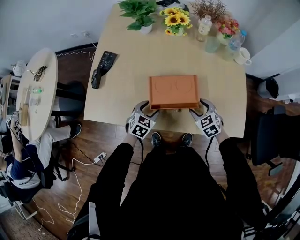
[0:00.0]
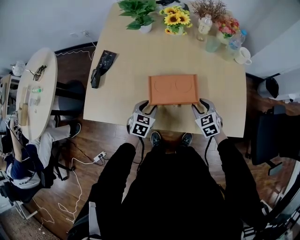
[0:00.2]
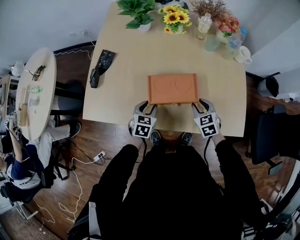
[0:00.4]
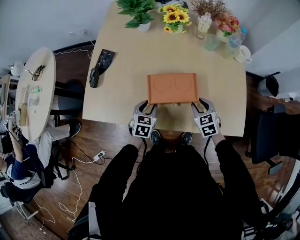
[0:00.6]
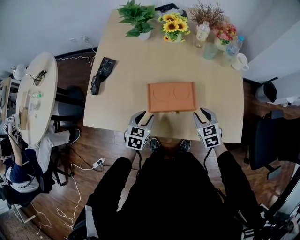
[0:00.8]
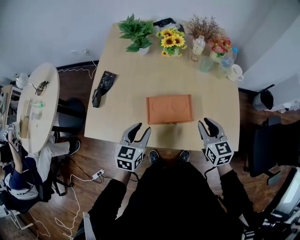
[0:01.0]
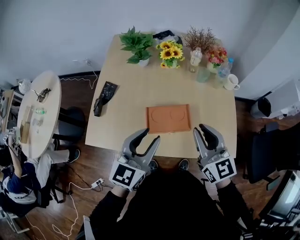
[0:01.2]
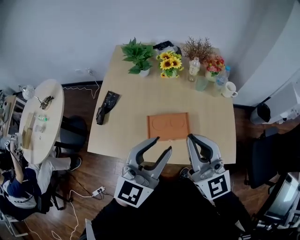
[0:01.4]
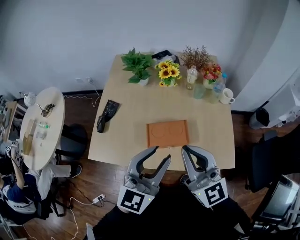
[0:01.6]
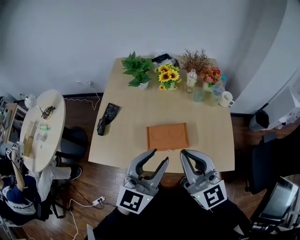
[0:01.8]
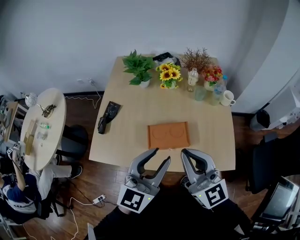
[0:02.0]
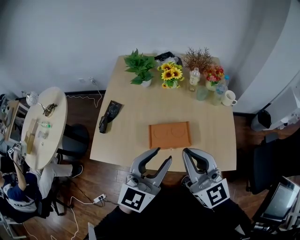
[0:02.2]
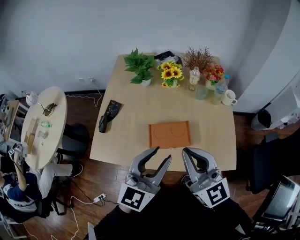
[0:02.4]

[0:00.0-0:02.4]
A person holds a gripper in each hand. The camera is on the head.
0:00.0 to 0:01.2: The two grippers go approximately 30 cm upward. The left gripper points its fingers roughly 40 degrees further upward; the right gripper points its fingers about 40 degrees further upward, and closes.
0:01.2 to 0:02.4: The left gripper shifts some 5 cm upward. Meanwhile the right gripper goes roughly 10 cm upward and to the left.

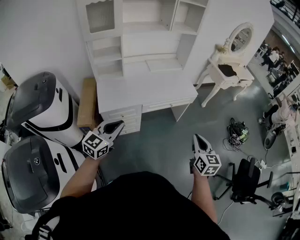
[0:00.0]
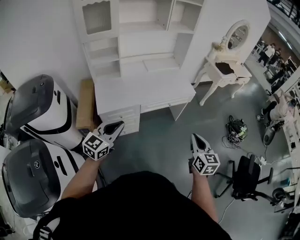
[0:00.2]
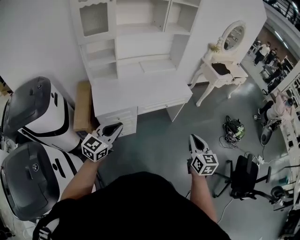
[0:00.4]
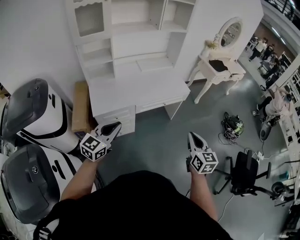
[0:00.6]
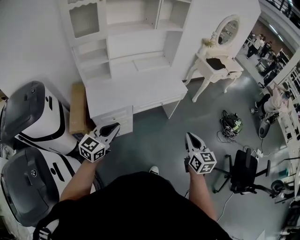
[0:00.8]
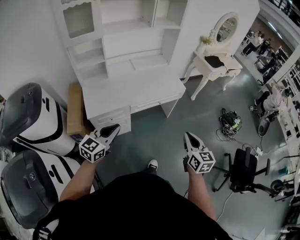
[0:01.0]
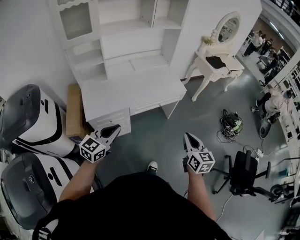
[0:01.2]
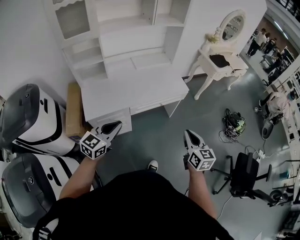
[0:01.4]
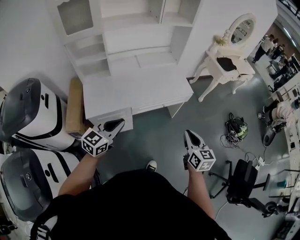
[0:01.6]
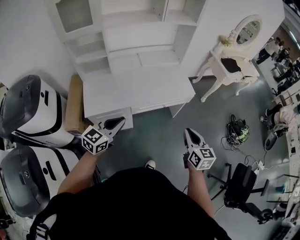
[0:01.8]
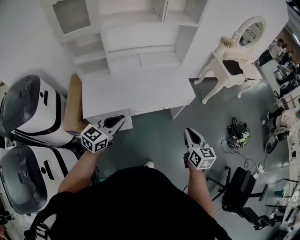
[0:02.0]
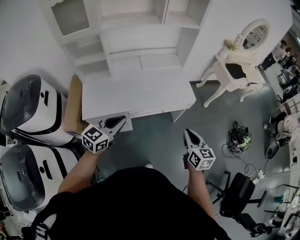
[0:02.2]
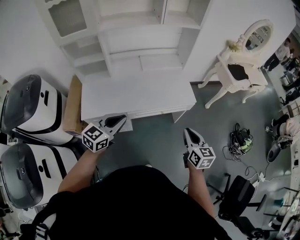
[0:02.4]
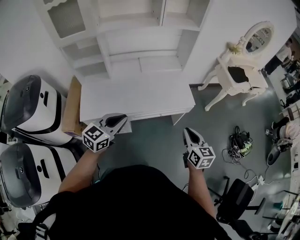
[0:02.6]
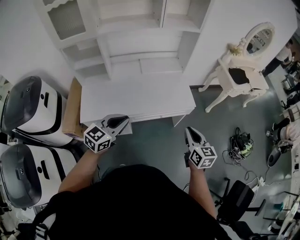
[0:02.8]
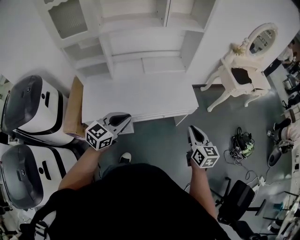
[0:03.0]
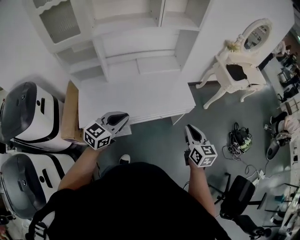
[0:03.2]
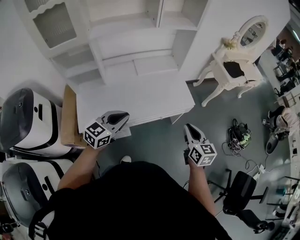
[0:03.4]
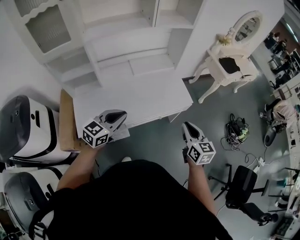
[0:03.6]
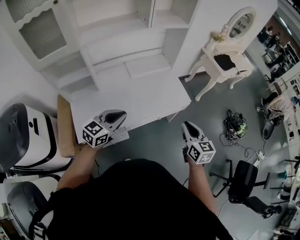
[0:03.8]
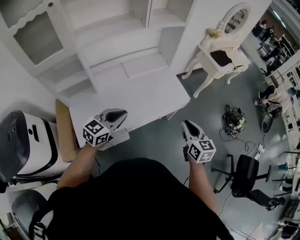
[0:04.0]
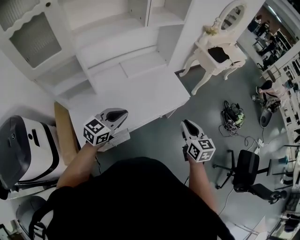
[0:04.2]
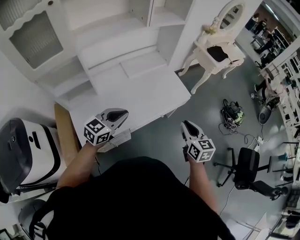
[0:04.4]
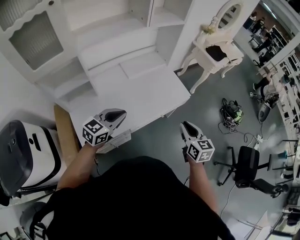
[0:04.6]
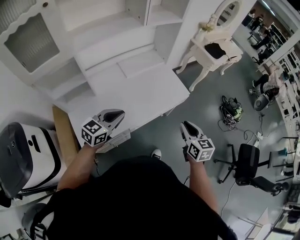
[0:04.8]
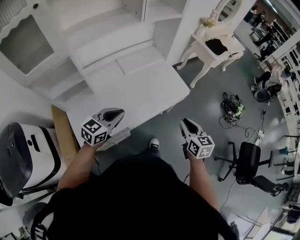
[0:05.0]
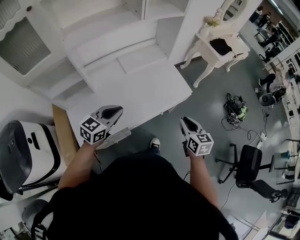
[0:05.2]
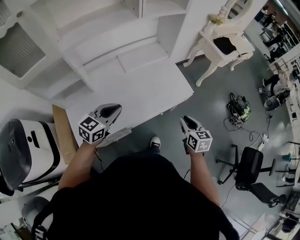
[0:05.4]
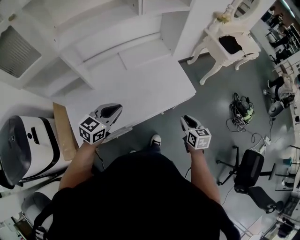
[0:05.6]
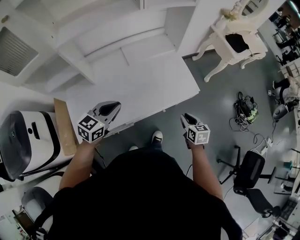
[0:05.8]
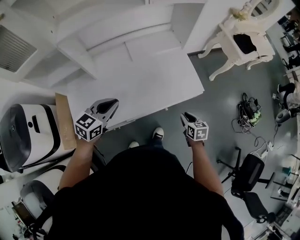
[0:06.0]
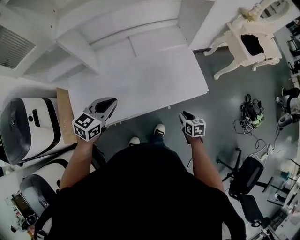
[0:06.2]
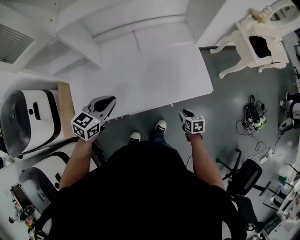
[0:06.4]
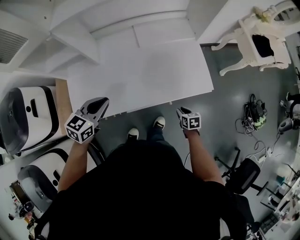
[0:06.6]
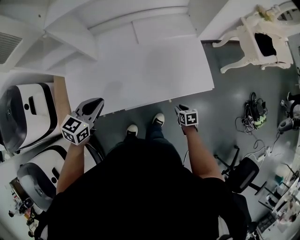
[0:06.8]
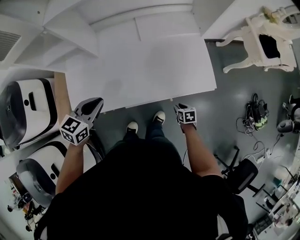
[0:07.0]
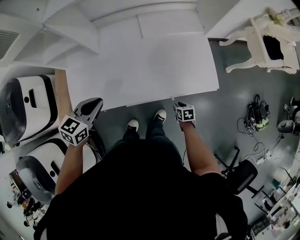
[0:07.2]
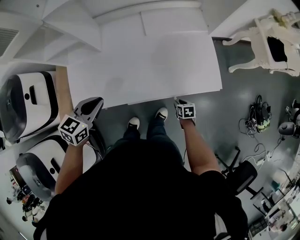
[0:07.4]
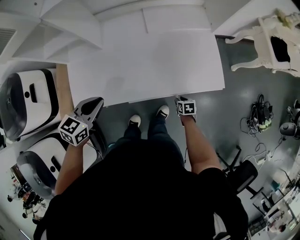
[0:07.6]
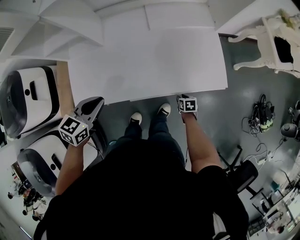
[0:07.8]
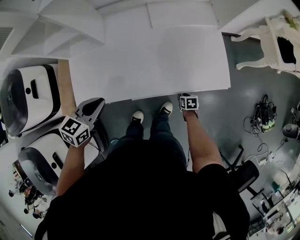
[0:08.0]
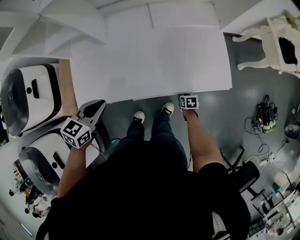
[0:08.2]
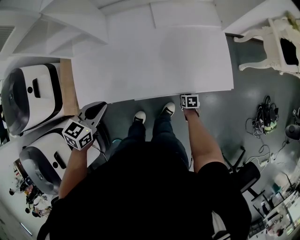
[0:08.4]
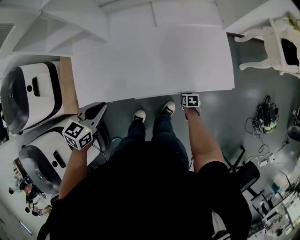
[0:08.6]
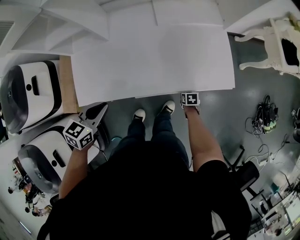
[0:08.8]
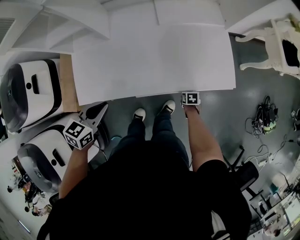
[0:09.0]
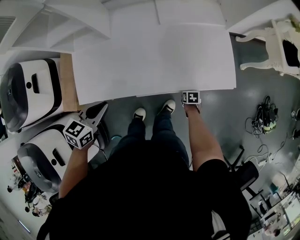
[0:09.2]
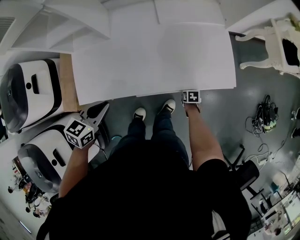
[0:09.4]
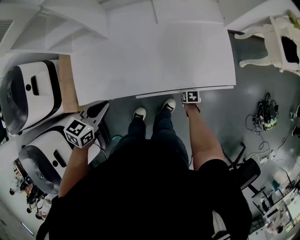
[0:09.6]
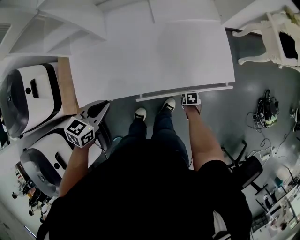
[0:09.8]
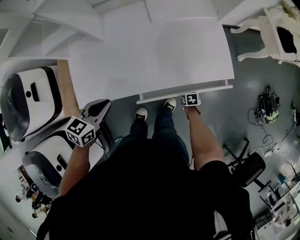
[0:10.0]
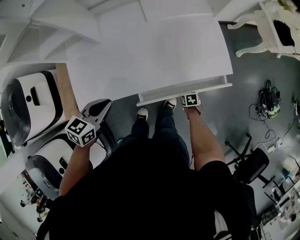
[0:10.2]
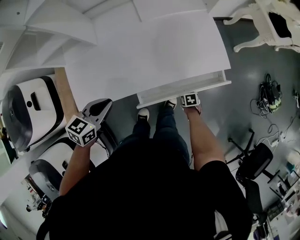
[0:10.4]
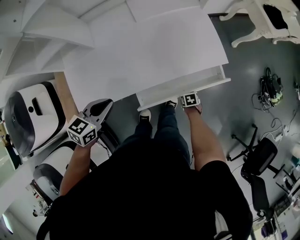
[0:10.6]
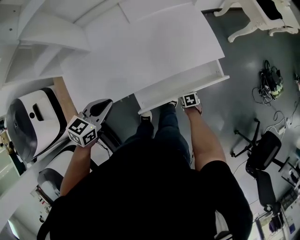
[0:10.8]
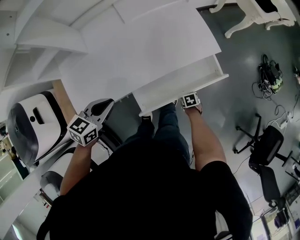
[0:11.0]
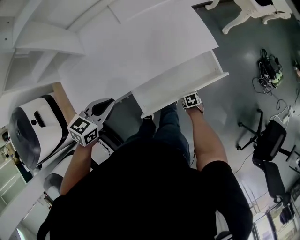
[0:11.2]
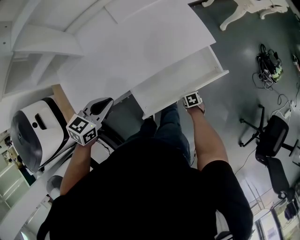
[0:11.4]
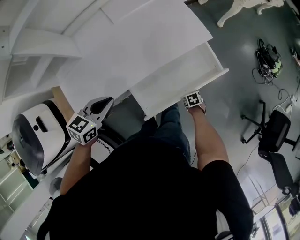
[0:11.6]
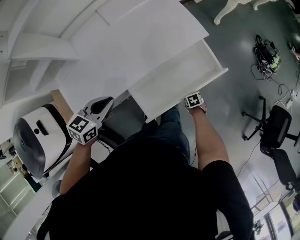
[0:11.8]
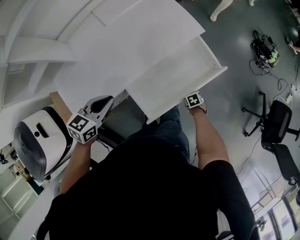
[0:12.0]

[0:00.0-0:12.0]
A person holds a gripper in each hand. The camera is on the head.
0:00.0 to 0:01.6: Both grippers travel together forward, approximately 15 cm.
0:01.6 to 0:03.0: The right gripper travels forward by about 15 cm; the left gripper travels forward and to the right by about 15 cm.
0:03.0 to 0:04.4: The right gripper heads to the left, covering approximately 10 cm. Meanwhile the left gripper travels to the left and forward by roughly 15 cm, and swivels roughly 20 degrees.
0:04.4 to 0:06.0: The right gripper travels downward and forward by about 25 cm, and swivels roughly 30 degrees. The left gripper is displaced forward and downward by approximately 10 cm.
0:06.0 to 0:07.6: The right gripper travels downward by about 25 cm, and changes its angle by about 20 degrees, while the left gripper travels to the left and downward by roughly 10 cm, and rotates approximately 20 degrees.
0:07.6 to 0:09.0: The left gripper ends up about 5 cm from where it was. Meanwhile the right gripper ends up approximately 5 cm from where it was.
0:09.0 to 0:10.4: The right gripper moves some 10 cm.
0:10.4 to 0:12.0: The right gripper changes place by about 15 cm, while the left gripper moves roughly 10 cm, and swivels roughly 20 degrees.

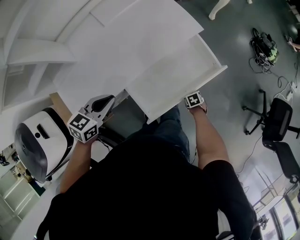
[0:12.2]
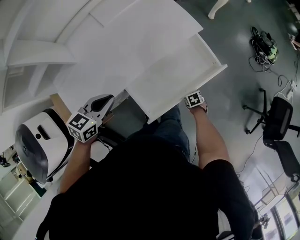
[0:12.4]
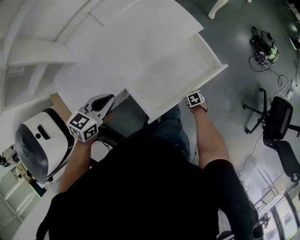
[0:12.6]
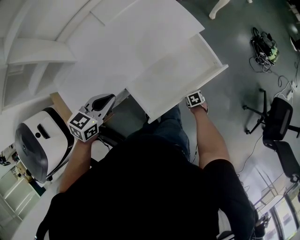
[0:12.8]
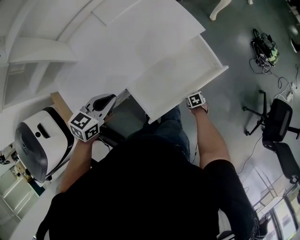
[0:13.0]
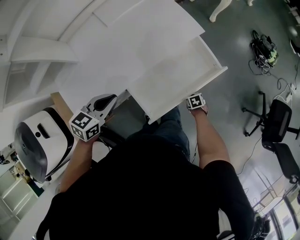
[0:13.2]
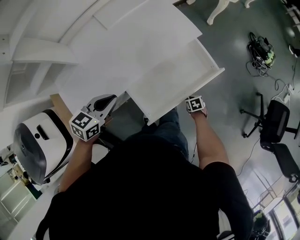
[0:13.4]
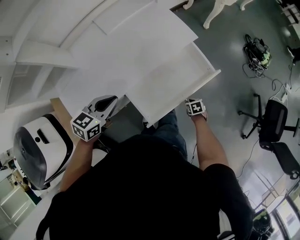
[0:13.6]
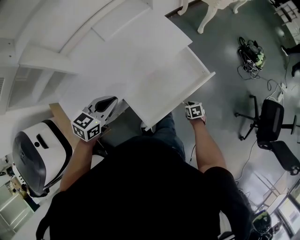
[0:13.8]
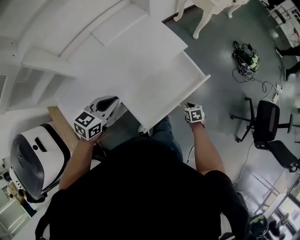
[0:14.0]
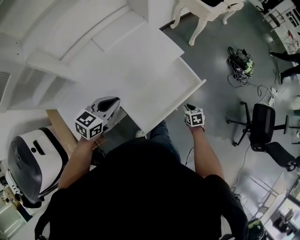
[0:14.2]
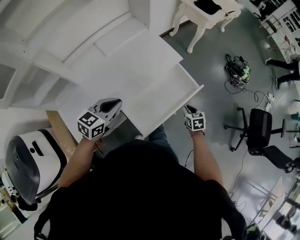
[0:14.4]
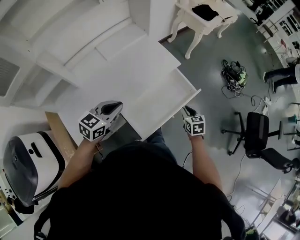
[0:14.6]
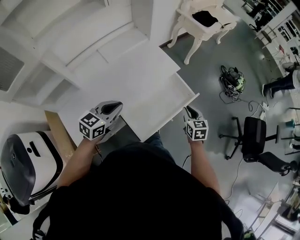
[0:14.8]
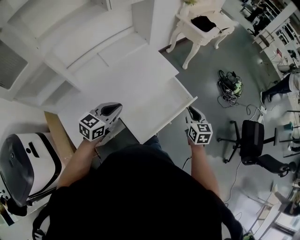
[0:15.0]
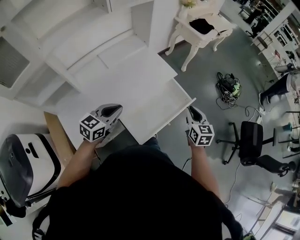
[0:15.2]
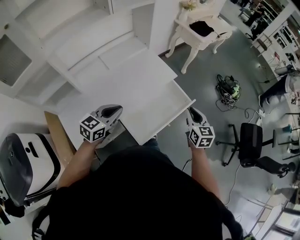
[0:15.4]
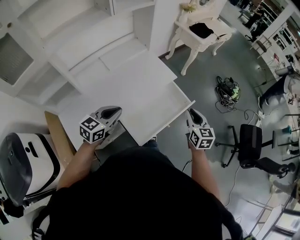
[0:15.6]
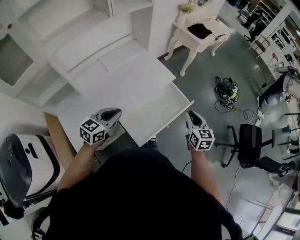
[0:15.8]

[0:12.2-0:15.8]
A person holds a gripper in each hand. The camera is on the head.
0:12.2 to 0:14.0: The left gripper shifts by approximately 5 cm. The right gripper travels upward by roughly 10 cm.
0:14.0 to 0:15.8: The left gripper goes roughly 5 cm upward, while the right gripper shifts about 35 cm upward, and angles its fingers upward, by approximately 40 degrees.

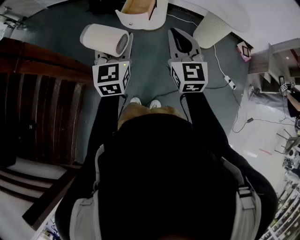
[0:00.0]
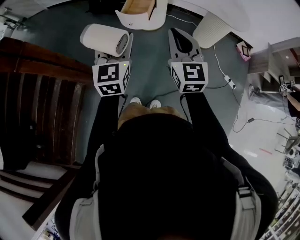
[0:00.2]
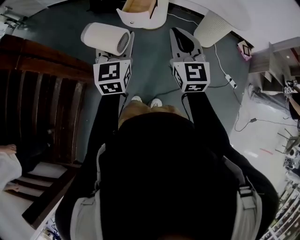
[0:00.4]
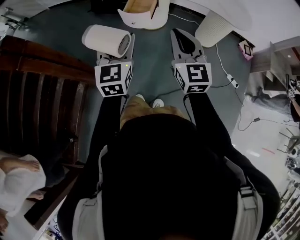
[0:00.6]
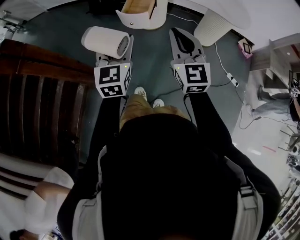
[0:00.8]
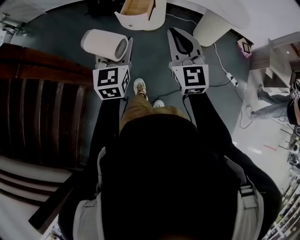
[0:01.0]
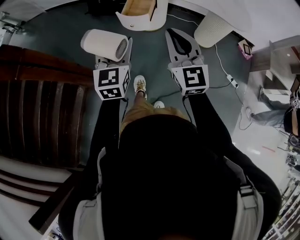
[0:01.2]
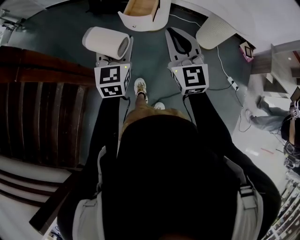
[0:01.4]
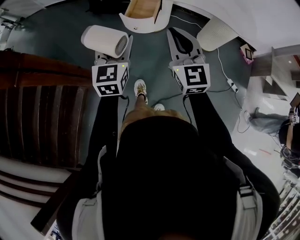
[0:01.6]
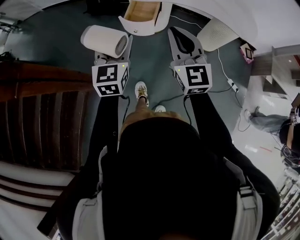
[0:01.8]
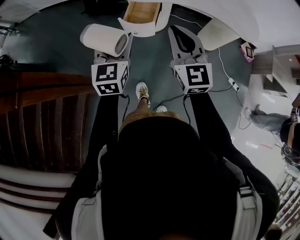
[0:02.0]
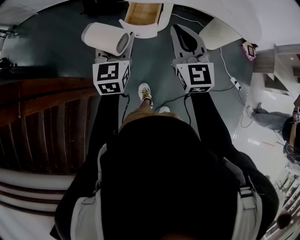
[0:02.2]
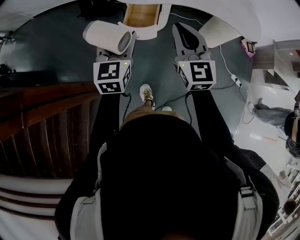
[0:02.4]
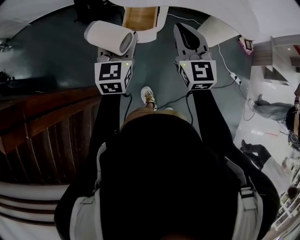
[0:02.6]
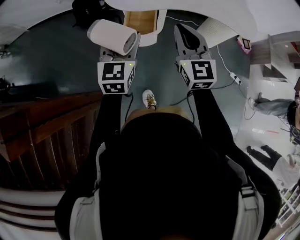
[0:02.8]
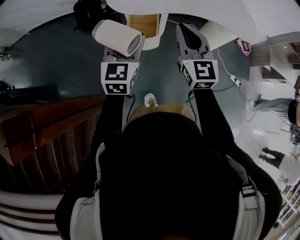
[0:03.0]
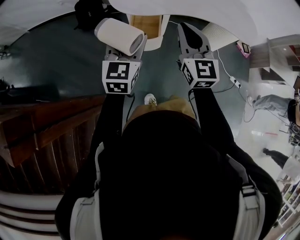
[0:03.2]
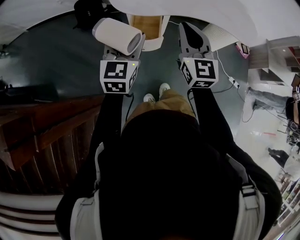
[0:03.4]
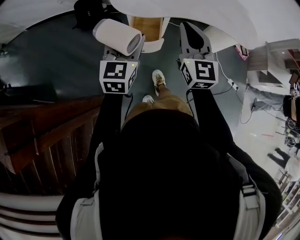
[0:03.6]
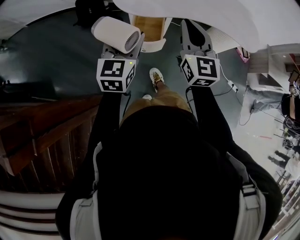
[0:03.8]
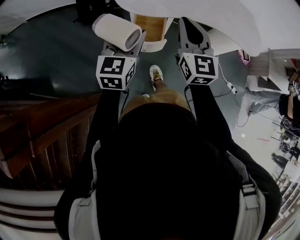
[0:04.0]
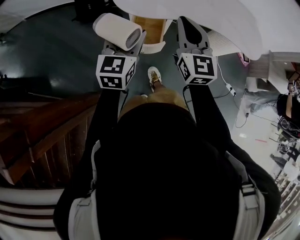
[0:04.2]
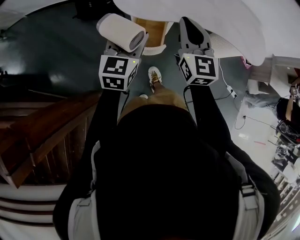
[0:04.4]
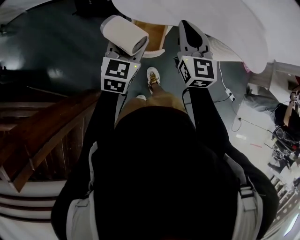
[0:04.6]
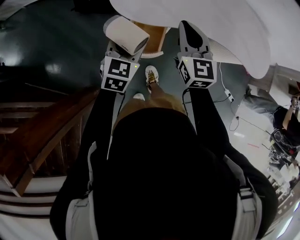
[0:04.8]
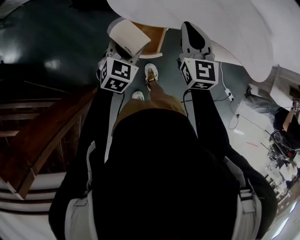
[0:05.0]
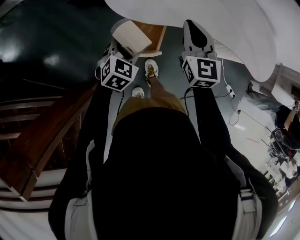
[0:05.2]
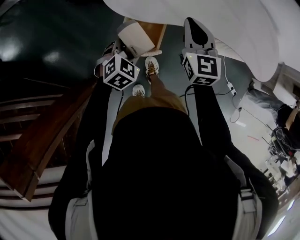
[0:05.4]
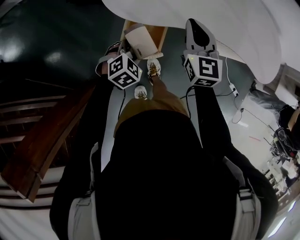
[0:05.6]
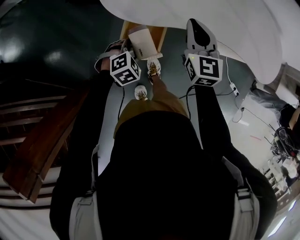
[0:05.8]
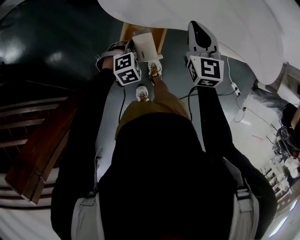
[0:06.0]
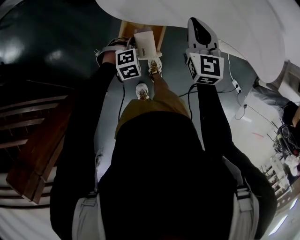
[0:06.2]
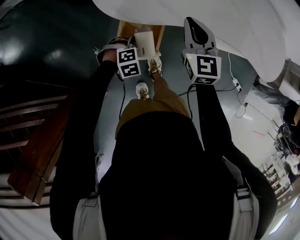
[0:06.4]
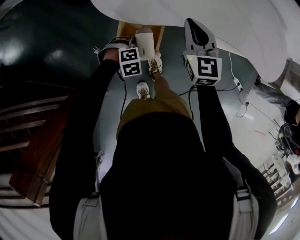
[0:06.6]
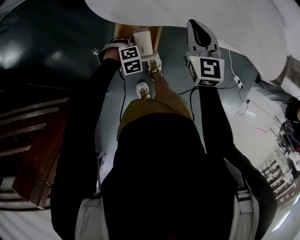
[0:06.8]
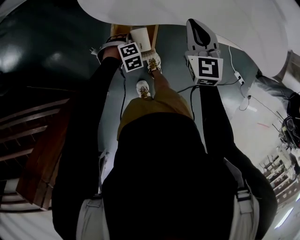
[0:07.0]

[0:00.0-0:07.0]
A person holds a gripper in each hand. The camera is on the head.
0:00.0 to 0:01.4: The left gripper changes place by some 5 cm.
0:01.4 to 0:02.8: The two grippers go roughly 15 cm forward.
0:02.8 to 0:04.2: The two grippers go some 10 cm forward.
0:04.2 to 0:05.6: The right gripper goes approximately 20 cm forward and downward. Meanwhile the left gripper moves downward, approximately 25 cm, and tips its fingers downward by some 50 degrees.
0:05.6 to 0:07.0: The right gripper travels downward by roughly 5 cm. The left gripper goes about 15 cm downward, and rotates approximately 30 degrees.
